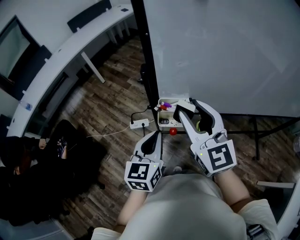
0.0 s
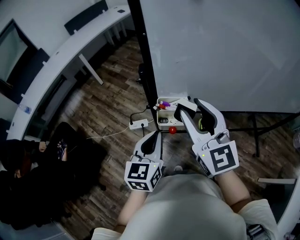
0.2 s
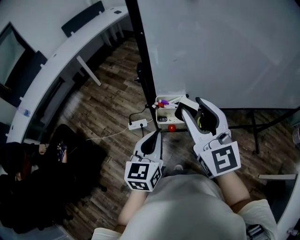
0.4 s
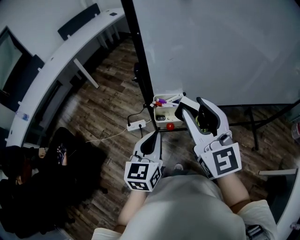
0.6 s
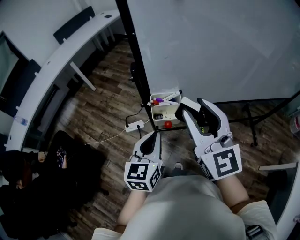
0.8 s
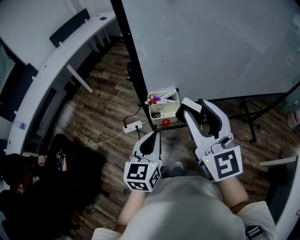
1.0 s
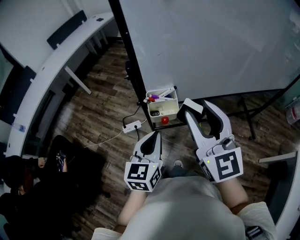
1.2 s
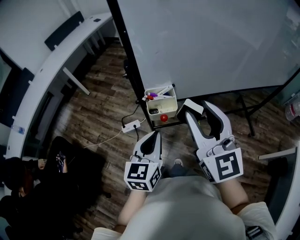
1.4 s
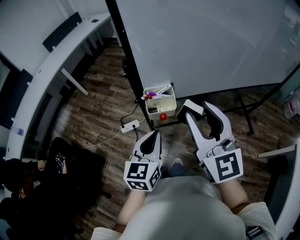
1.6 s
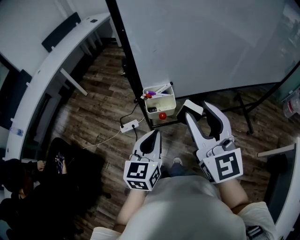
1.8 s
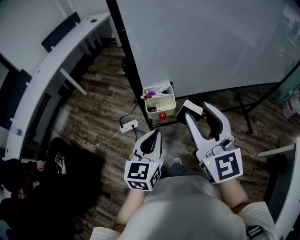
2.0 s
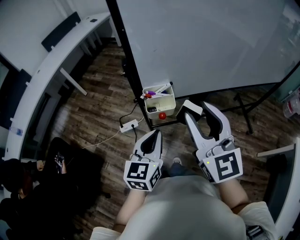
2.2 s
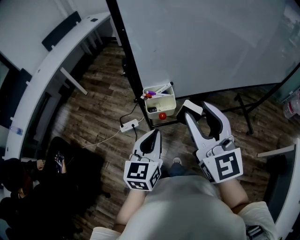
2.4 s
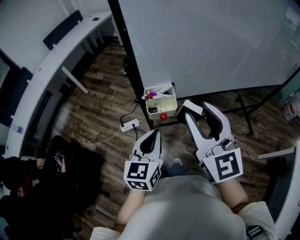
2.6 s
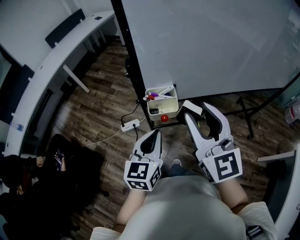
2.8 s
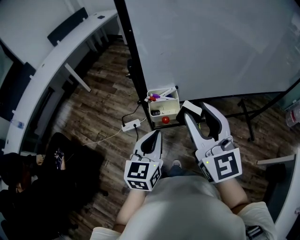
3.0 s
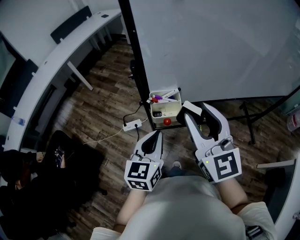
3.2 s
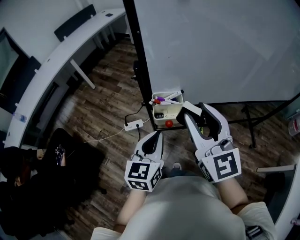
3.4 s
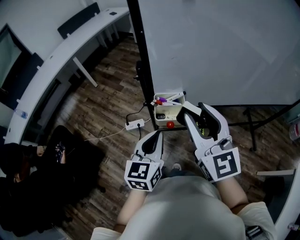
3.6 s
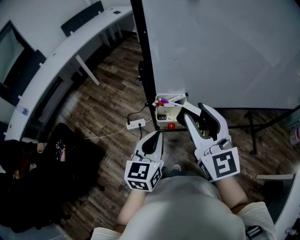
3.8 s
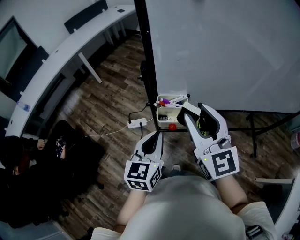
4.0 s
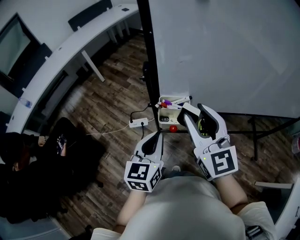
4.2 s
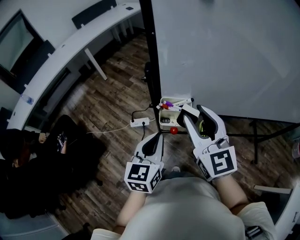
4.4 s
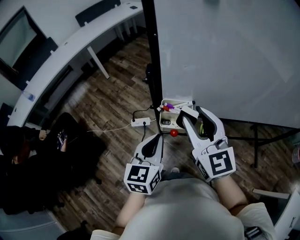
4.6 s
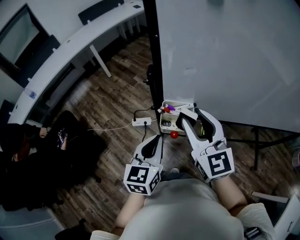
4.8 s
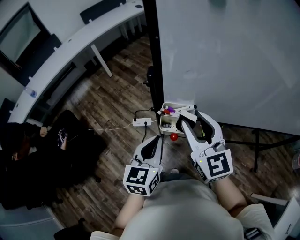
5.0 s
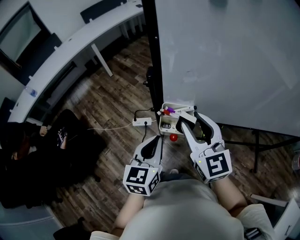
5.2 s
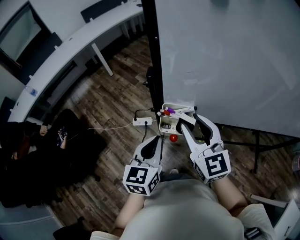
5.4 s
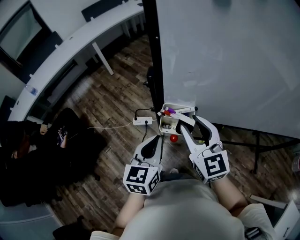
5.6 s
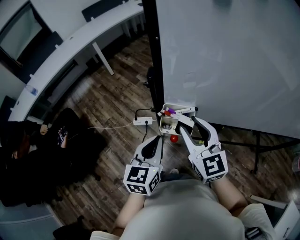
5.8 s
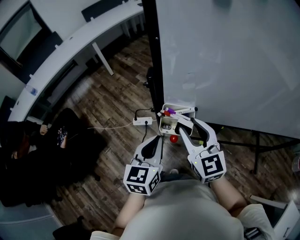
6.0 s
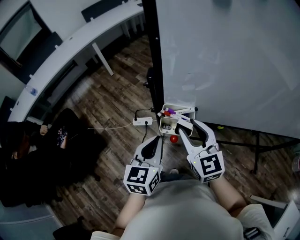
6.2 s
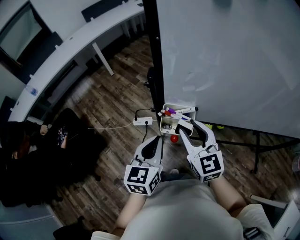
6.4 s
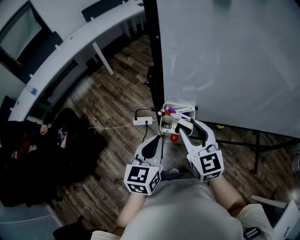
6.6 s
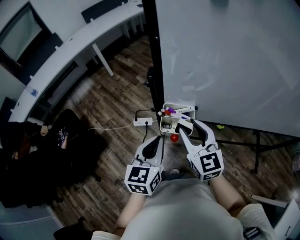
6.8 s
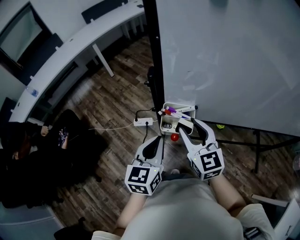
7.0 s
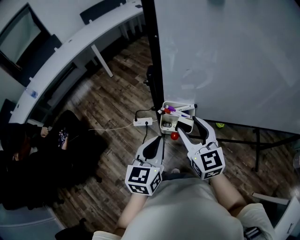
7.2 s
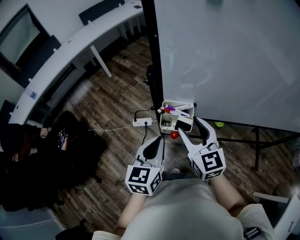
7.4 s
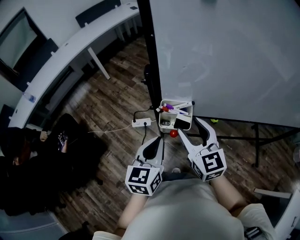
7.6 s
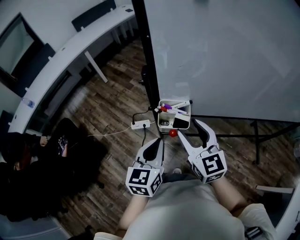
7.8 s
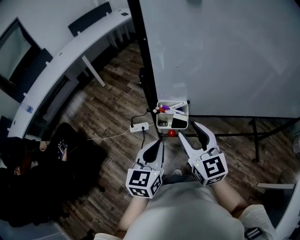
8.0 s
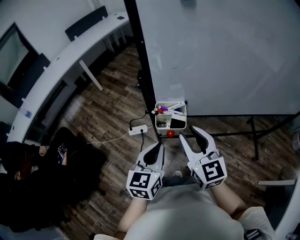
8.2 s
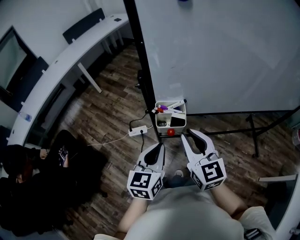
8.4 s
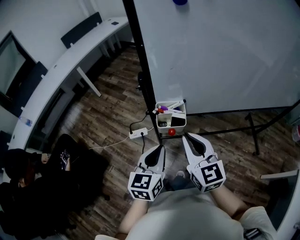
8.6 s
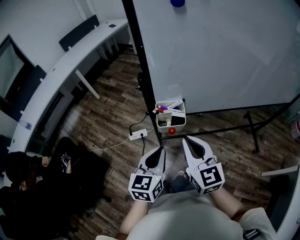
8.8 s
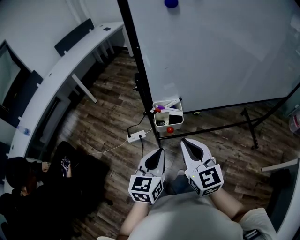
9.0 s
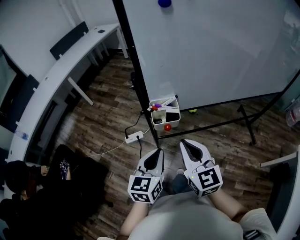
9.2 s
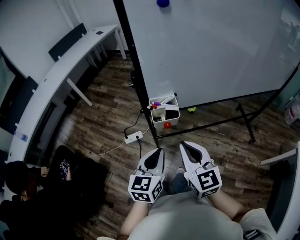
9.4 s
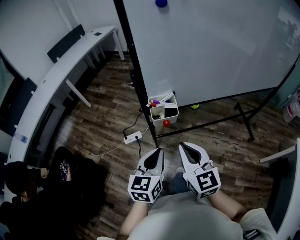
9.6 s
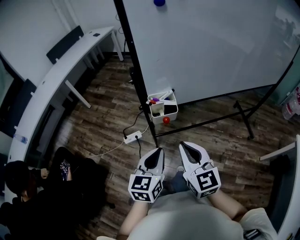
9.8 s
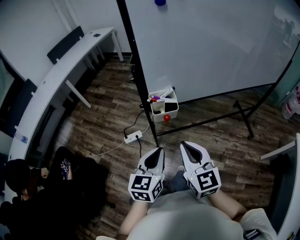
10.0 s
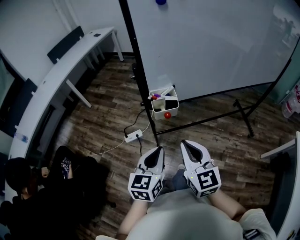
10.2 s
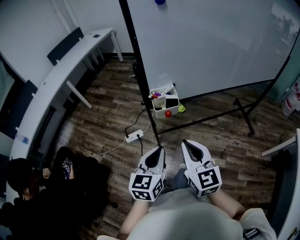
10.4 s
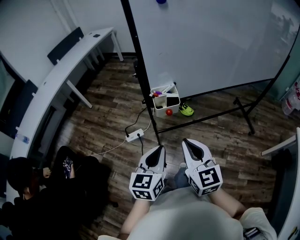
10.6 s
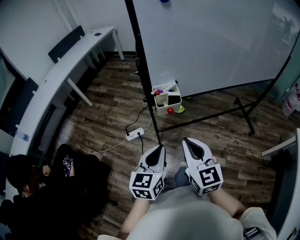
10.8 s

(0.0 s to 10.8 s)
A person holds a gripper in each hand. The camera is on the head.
0.0 s - 1.6 s: The right gripper heads backward, covering about 10 cm, while the left gripper is displaced backward by about 5 cm.
1.6 s - 3.0 s: The grippers stay close to where they were, moving slightly.
3.0 s - 4.6 s: The right gripper is displaced forward by about 10 cm.
4.6 s - 6.2 s: The right gripper is displaced downward by some 10 cm.
6.2 s - 7.8 s: There are only small adjustments of the grippers.
7.8 s - 9.2 s: The left gripper is displaced backward by about 5 cm. The right gripper heads backward, covering about 10 cm, and closes its fingers.
9.2 s - 10.8 s: Both grippers move backward, roughly 10 cm.

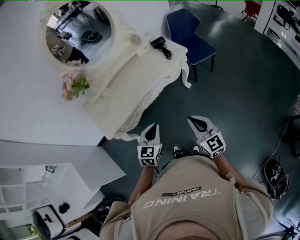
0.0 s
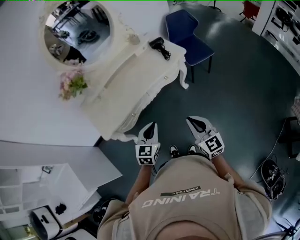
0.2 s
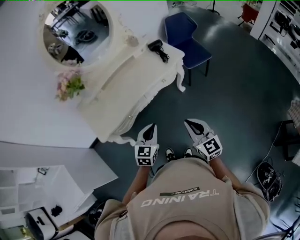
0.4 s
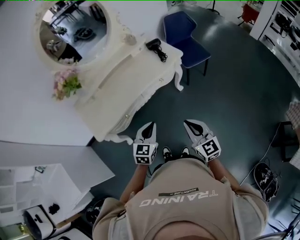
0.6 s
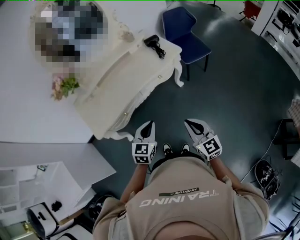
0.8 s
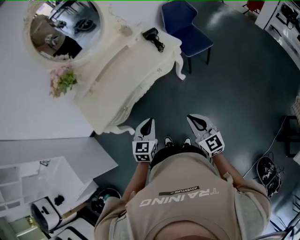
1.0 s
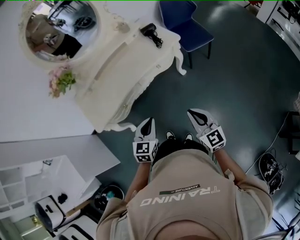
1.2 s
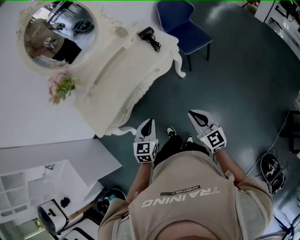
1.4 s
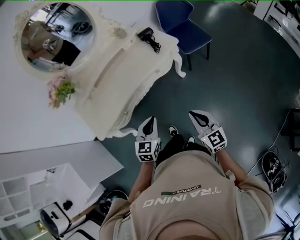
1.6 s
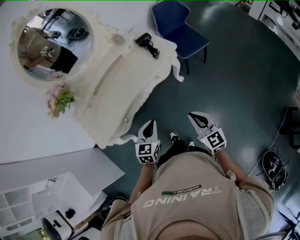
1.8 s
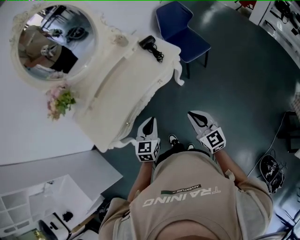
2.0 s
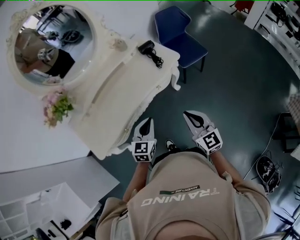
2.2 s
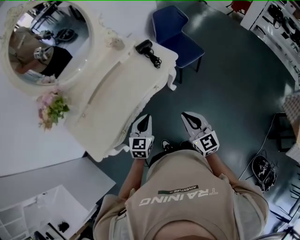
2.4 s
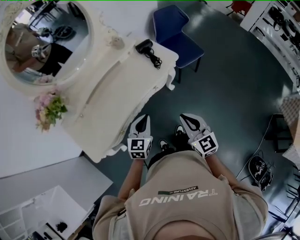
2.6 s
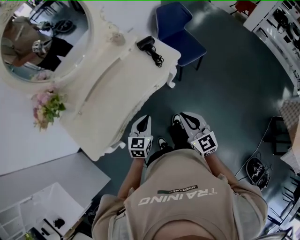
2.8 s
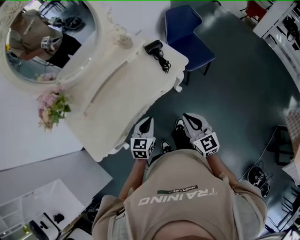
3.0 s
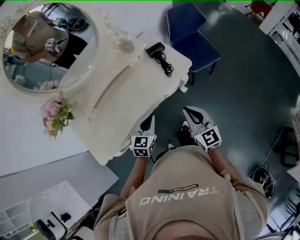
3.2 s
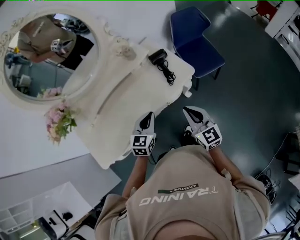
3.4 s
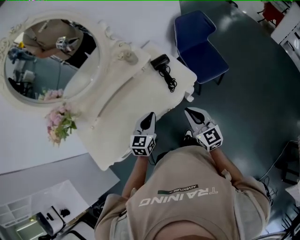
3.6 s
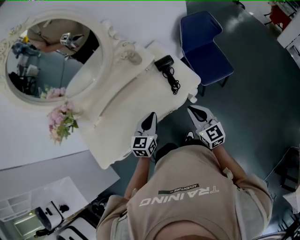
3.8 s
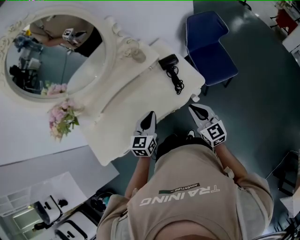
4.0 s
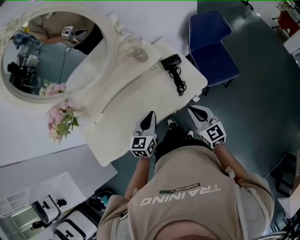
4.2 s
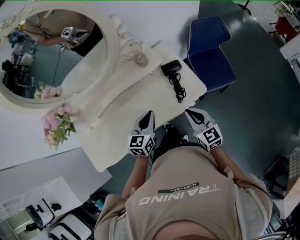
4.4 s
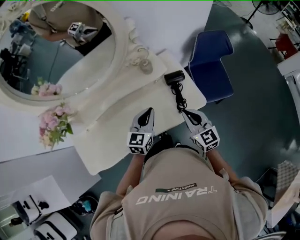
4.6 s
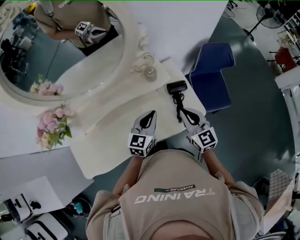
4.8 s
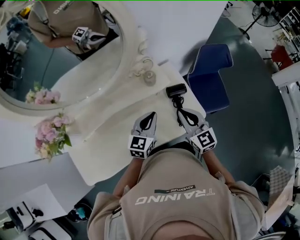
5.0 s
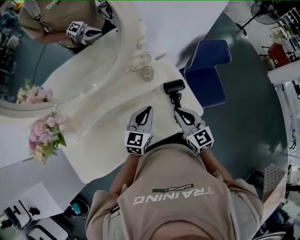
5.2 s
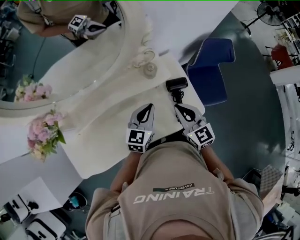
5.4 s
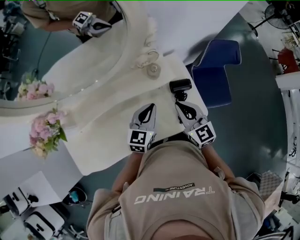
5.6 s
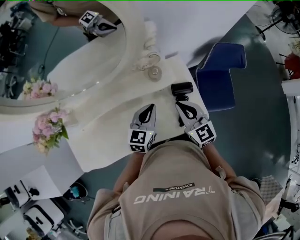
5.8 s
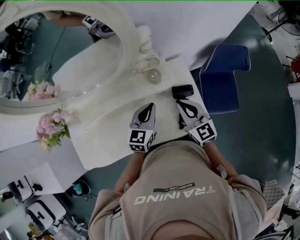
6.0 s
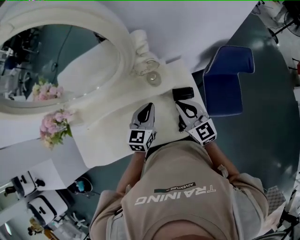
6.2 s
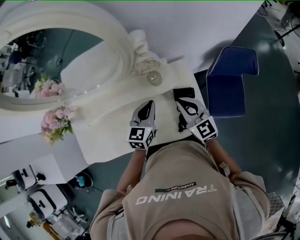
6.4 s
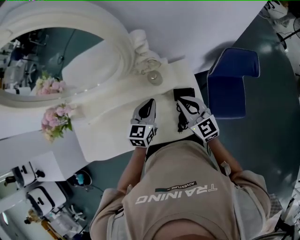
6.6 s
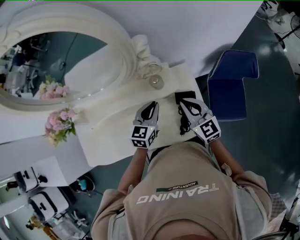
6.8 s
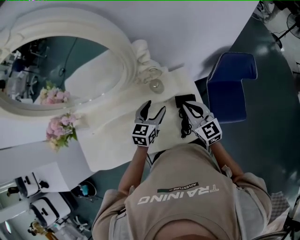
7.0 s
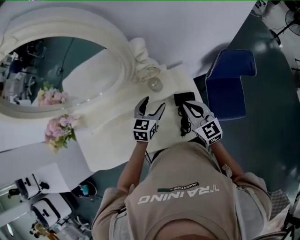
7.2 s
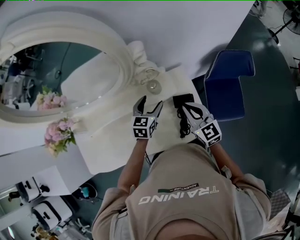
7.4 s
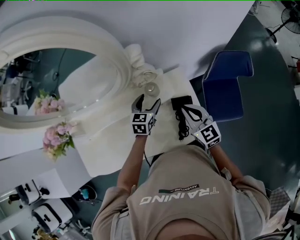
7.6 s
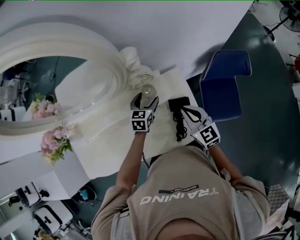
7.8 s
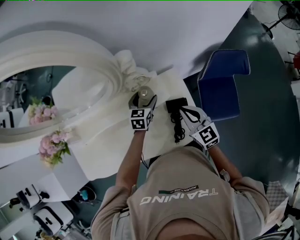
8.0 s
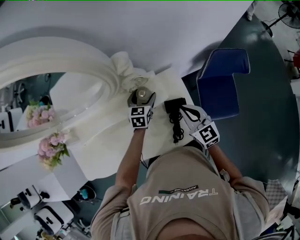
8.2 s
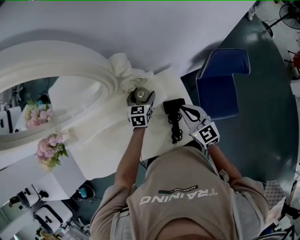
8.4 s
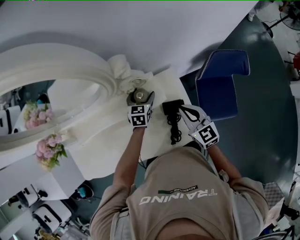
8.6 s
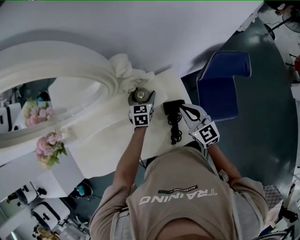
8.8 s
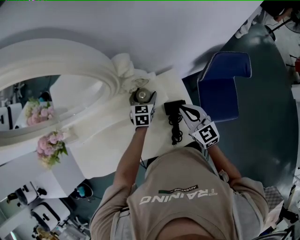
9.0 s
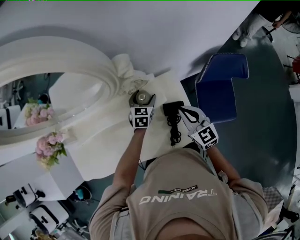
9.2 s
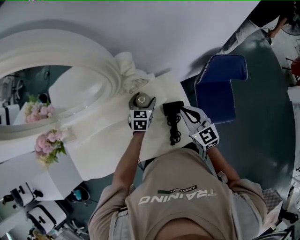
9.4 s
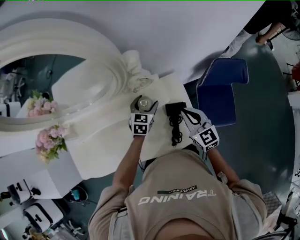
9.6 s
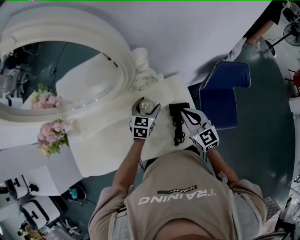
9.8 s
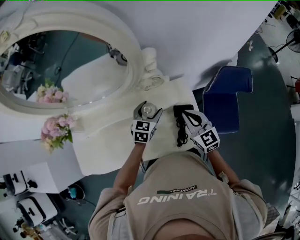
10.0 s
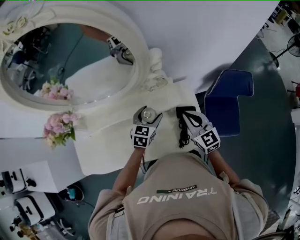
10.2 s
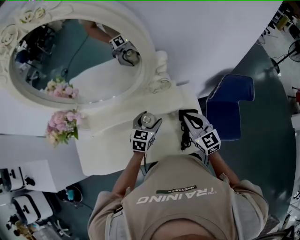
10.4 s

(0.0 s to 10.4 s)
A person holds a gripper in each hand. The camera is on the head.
0.0 s - 1.4 s: The right gripper heads to the right, covering about 5 cm. Meanwhile the left gripper ends up approximately 5 cm from where it was.
1.4 s - 3.0 s: Both grippers travel together forward, roughly 20 cm.
3.0 s - 4.4 s: The two grippers go some 20 cm forward.
4.4 s - 6.0 s: Both grippers travel together forward, roughly 20 cm.
6.0 s - 7.4 s: The right gripper ends up some 5 cm from where it was, while the left gripper shifts roughly 10 cm forward, and opens its fingers.
7.4 s - 9.0 s: The left gripper travels forward and downward by about 10 cm. Meanwhile the right gripper ends up roughly 5 cm from where it was.
9.0 s - 10.4 s: The left gripper shifts roughly 15 cm backward, upward and to the left. The right gripper travels to the left by some 5 cm.

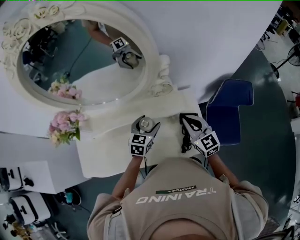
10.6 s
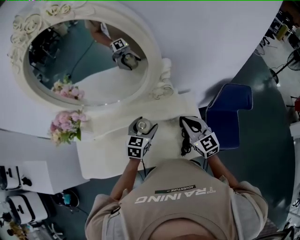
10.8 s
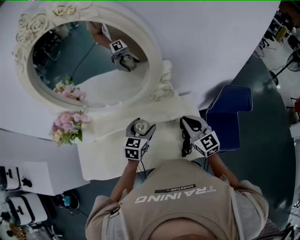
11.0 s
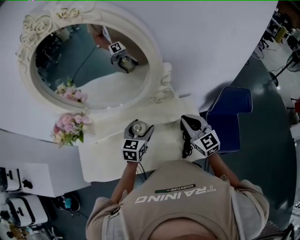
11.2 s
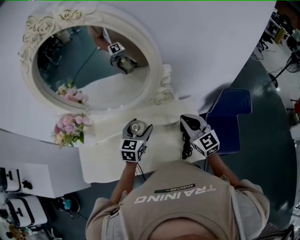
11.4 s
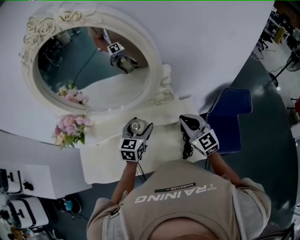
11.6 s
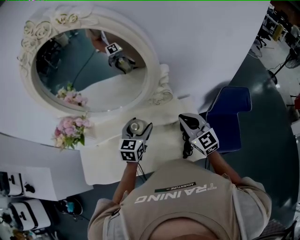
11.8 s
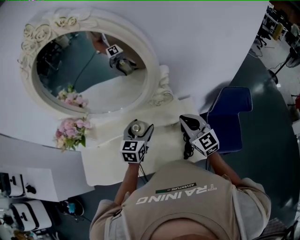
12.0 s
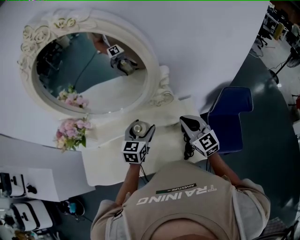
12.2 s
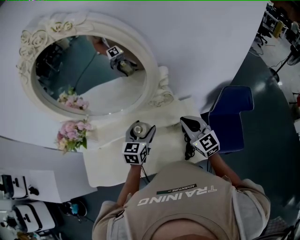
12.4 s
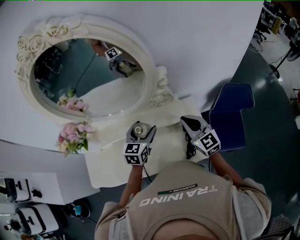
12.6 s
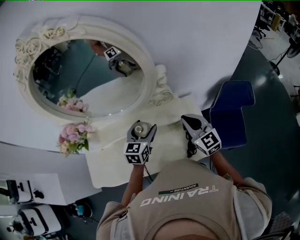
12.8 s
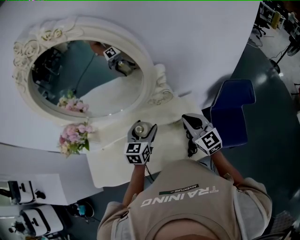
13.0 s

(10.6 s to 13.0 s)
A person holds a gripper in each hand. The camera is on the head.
10.6 s - 11.8 s: Both grippers move upward, some 5 cm.
11.8 s - 13.0 s: The grippers move only a little.
